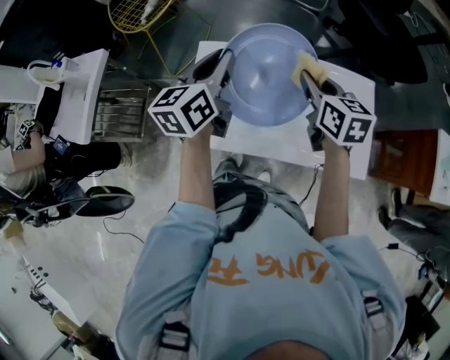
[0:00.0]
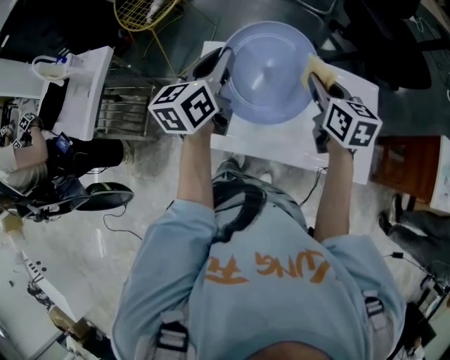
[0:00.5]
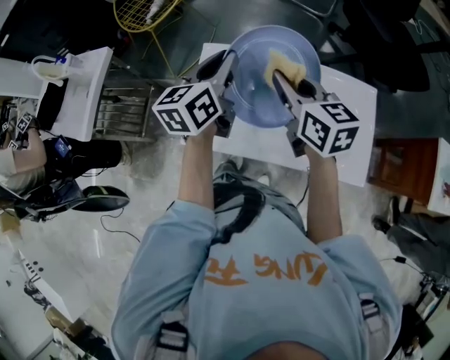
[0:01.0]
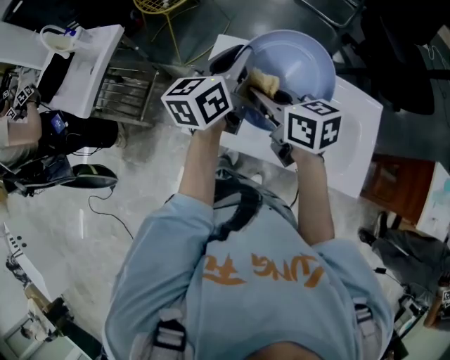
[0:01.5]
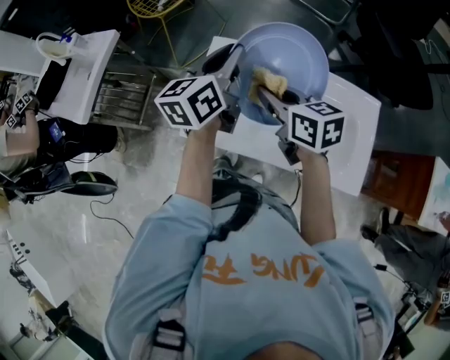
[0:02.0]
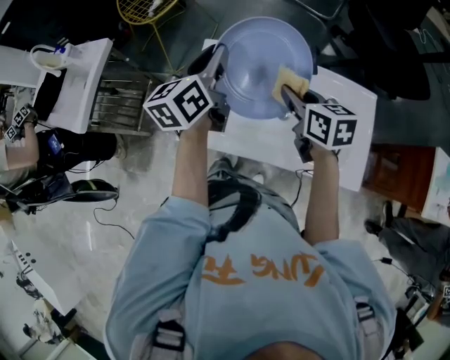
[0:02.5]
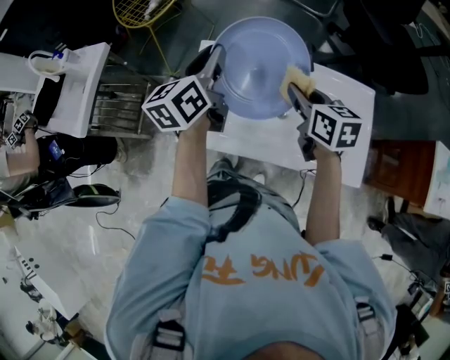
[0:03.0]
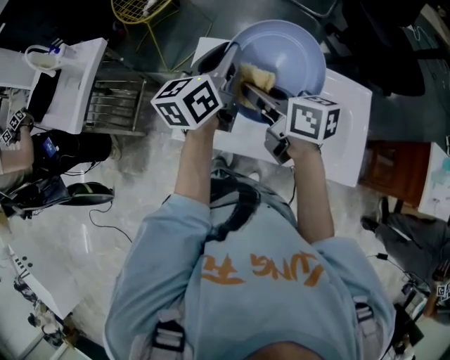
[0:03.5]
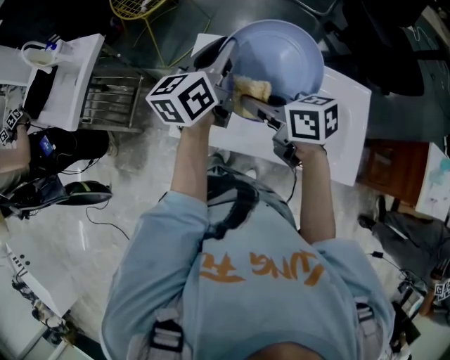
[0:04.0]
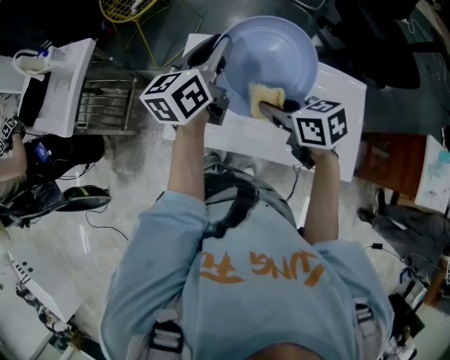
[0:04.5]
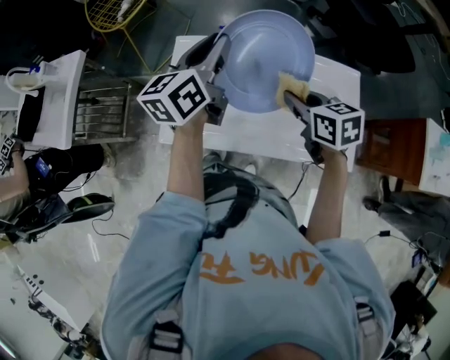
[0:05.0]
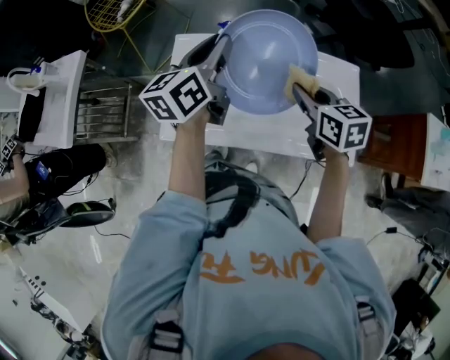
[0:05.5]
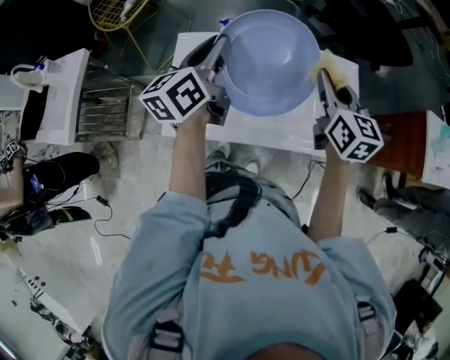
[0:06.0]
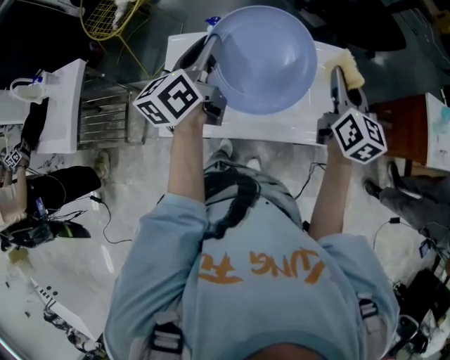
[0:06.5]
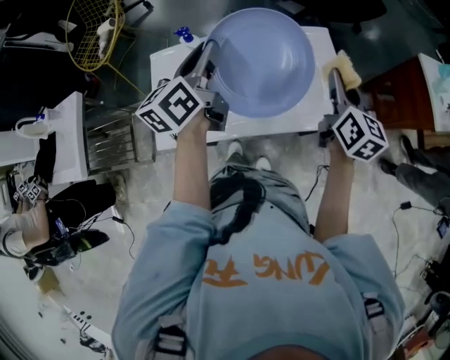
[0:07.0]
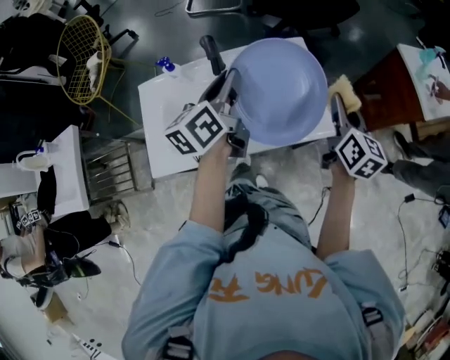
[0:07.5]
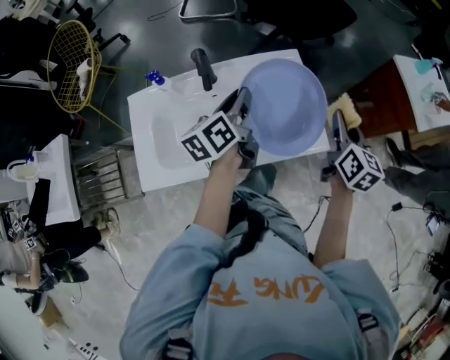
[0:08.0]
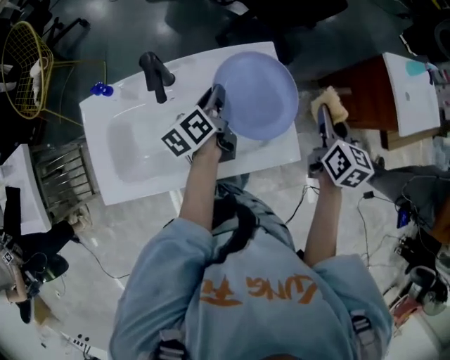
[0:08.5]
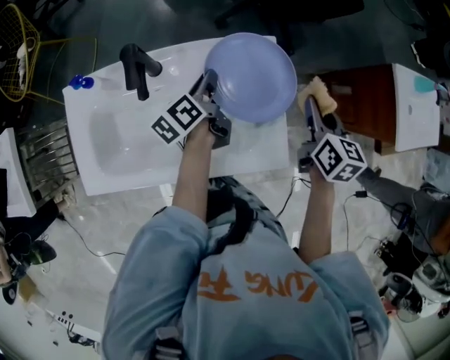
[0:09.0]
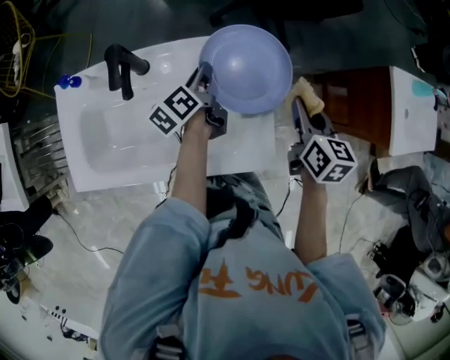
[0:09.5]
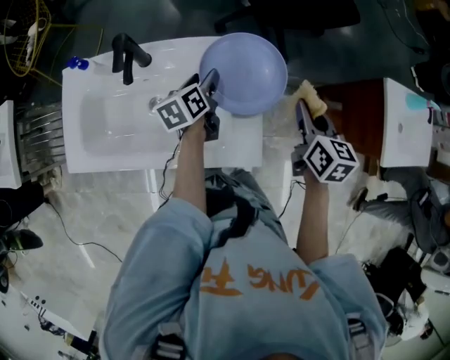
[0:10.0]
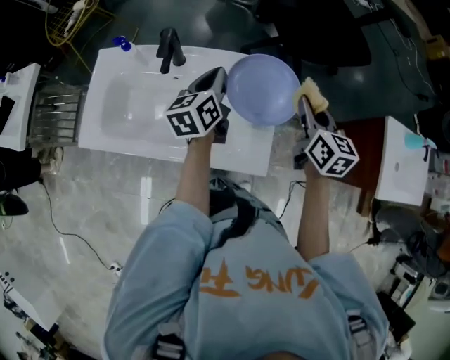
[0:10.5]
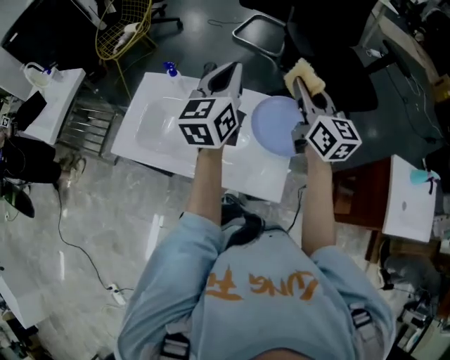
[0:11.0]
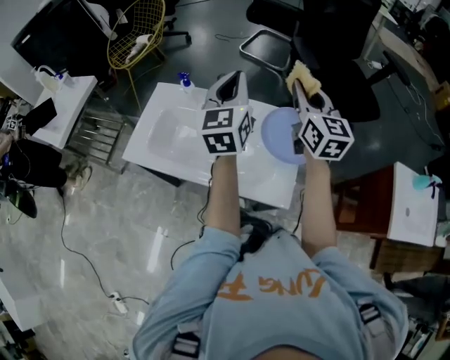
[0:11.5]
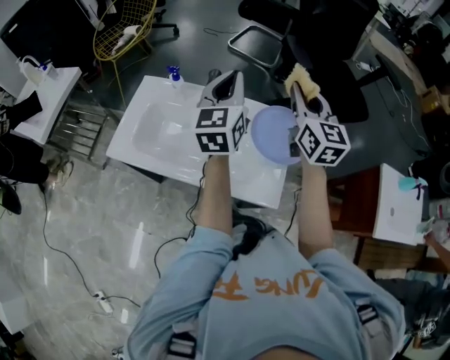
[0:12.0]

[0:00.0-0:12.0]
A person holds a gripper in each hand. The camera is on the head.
0:00.0 to 0:02.0: The right gripper moves to the left, approximately 15 cm, and swivels approximately 30 degrees.
0:02.0 to 0:04.0: The right gripper travels to the right and back again, some 10 cm each way.
0:04.0 to 0:06.0: The right gripper ends up roughly 25 cm from where it was, and turns by roughly 60 degrees, while the left gripper shifts by about 5 cm.
0:06.0 to 0:08.0: Both grippers move to the right, roughly 25 cm. The right gripper rotates roughly 30 degrees, while the left gripper rotates about 20 degrees.
0:08.0 to 0:10.0: The left gripper shifts approximately 25 cm downward and forward, swivels about 20 degrees, and opens its fingers. Meanwhile the right gripper moves forward and downward, approximately 20 cm, and turns by some 30 degrees.
0:10.0 to 0:12.0: The left gripper heads upward, covering about 30 cm, points its fingers roughly 30 degrees further upward, and closes; the right gripper moves upward and to the left, some 25 cm, and angles its fingers upward, by some 30 degrees.

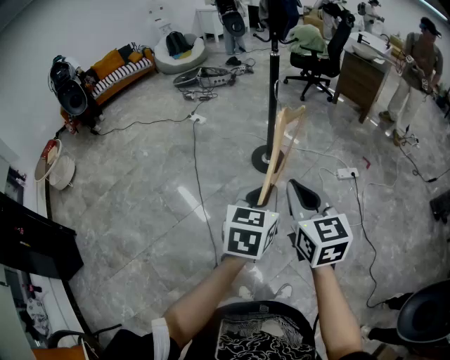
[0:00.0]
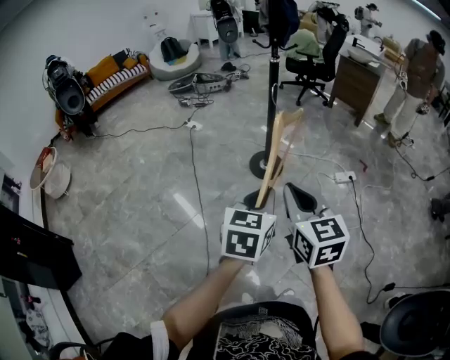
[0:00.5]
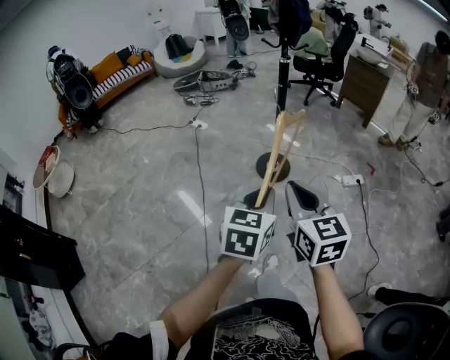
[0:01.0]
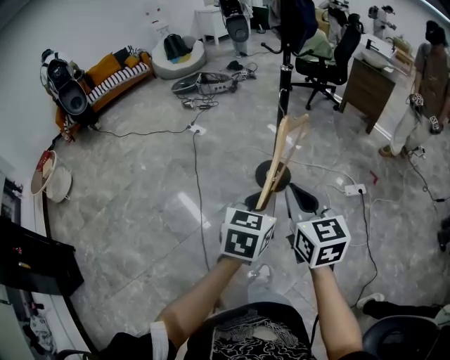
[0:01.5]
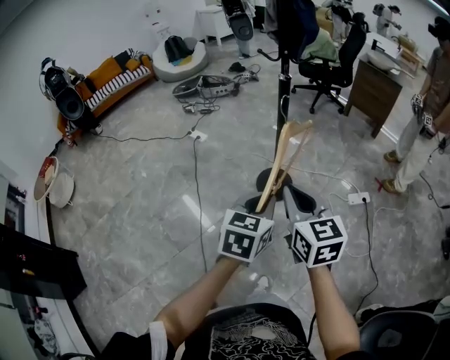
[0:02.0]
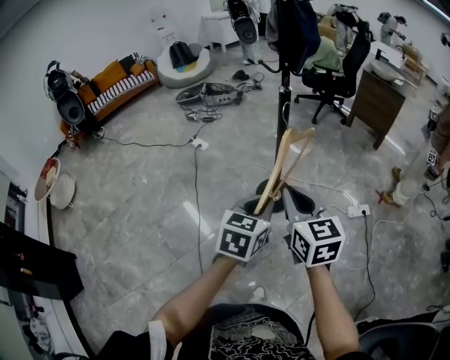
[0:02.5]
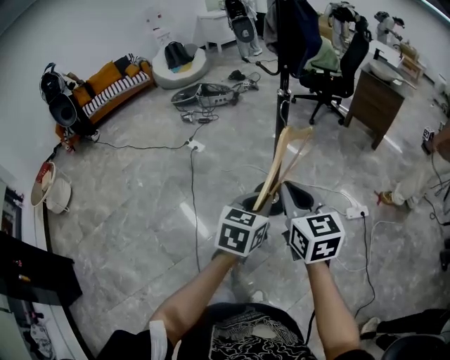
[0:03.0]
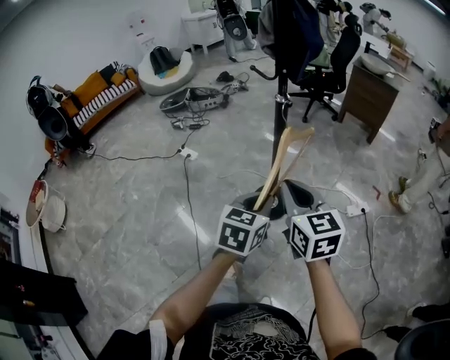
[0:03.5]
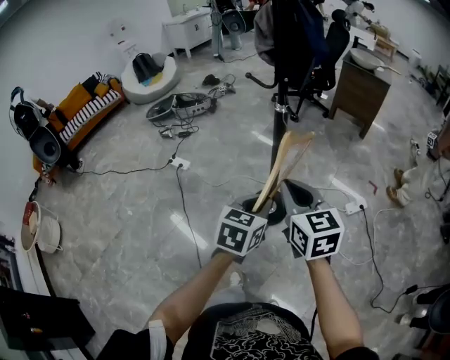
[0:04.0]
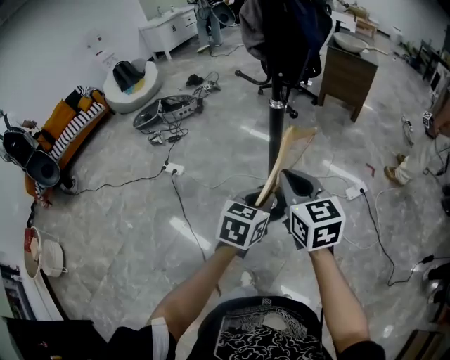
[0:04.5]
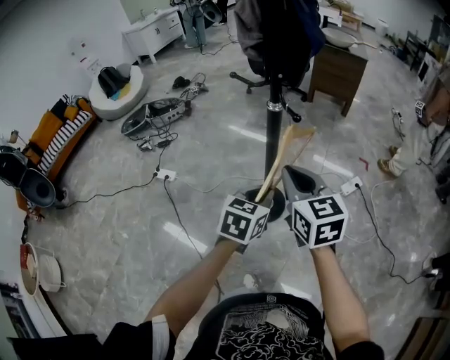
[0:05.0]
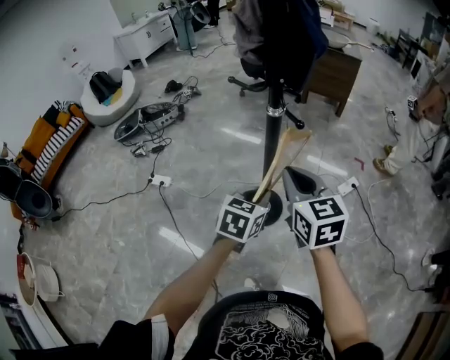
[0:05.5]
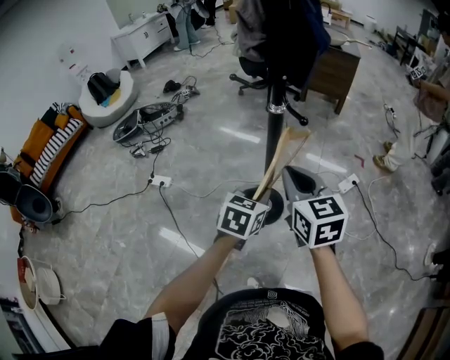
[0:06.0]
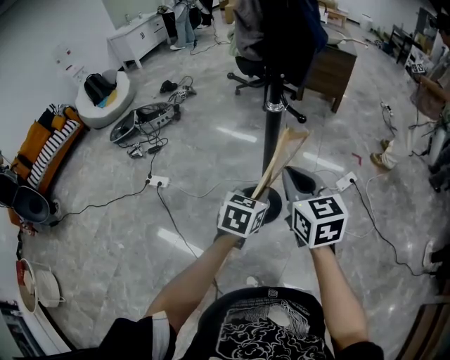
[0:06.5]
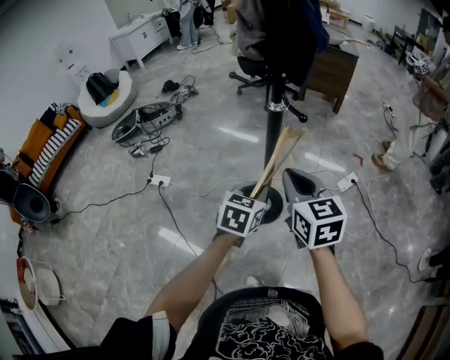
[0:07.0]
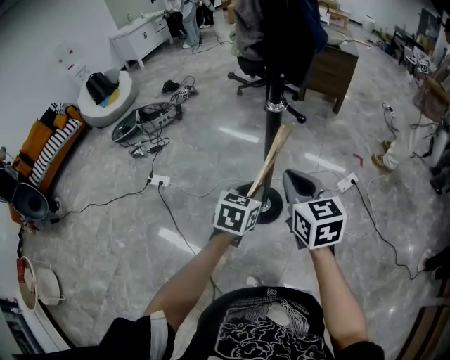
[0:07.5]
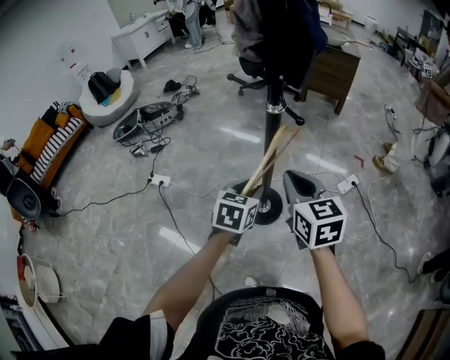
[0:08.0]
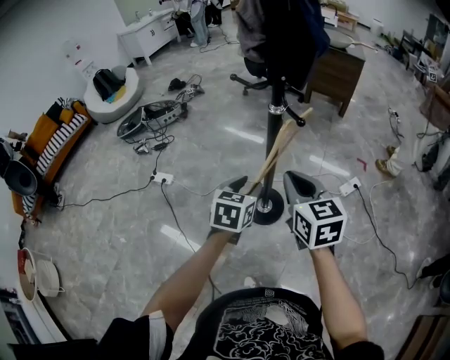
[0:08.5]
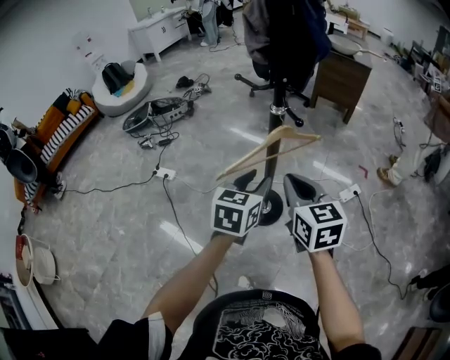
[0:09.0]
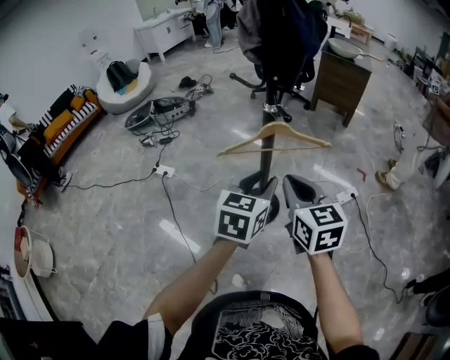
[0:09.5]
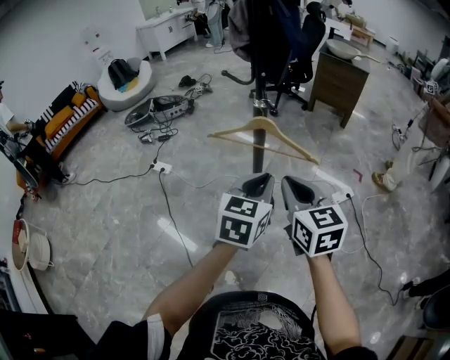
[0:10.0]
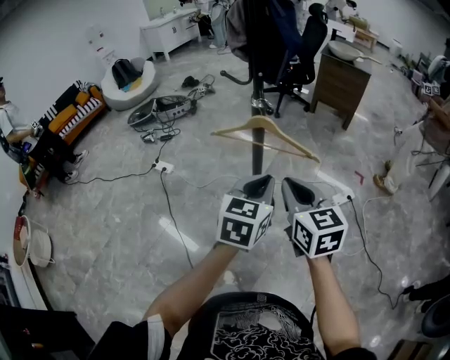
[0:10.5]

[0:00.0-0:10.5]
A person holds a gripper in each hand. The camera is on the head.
0:00.0 to 0:02.0: Both grippers travel together forward, roughly 25 cm.
0:02.0 to 0:04.0: The grippers both shift forward by some 20 cm.
0:04.0 to 0:06.5: The right gripper heads forward and to the left, covering about 10 cm, while the left gripper heads forward, to the left and downward, covering approximately 15 cm.
0:06.5 to 0:08.5: The left gripper opens.
0:08.5 to 0:10.5: The right gripper moves to the right and backward, some 10 cm. Meanwhile the left gripper is displaced to the right, upward and backward by approximately 20 cm, and closes its fingers.

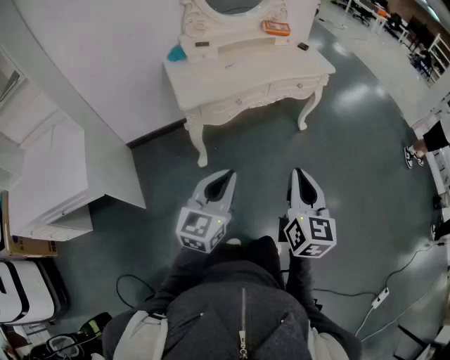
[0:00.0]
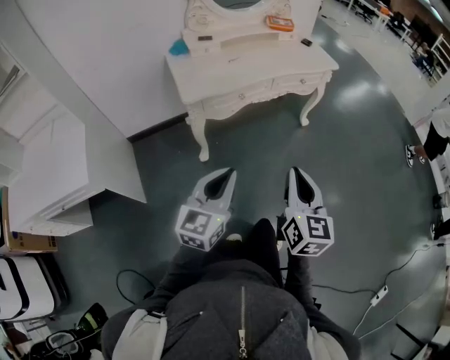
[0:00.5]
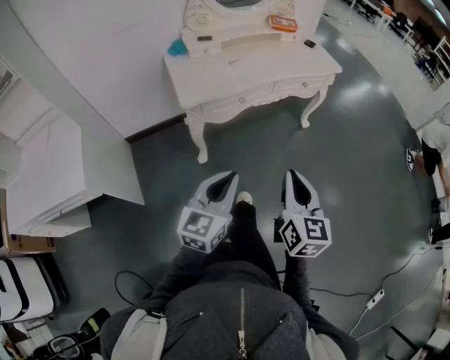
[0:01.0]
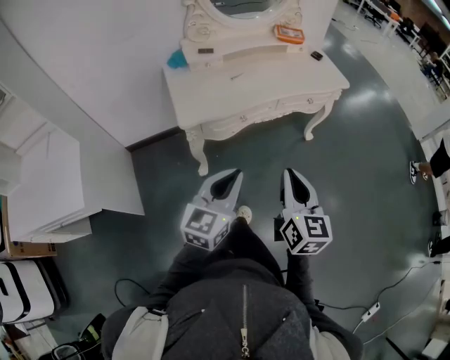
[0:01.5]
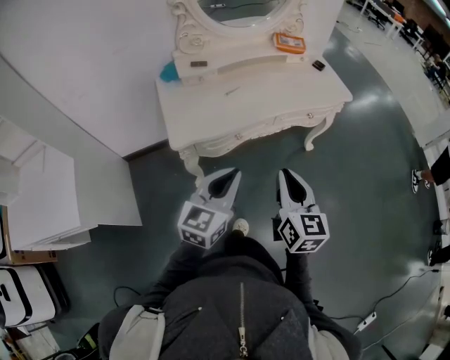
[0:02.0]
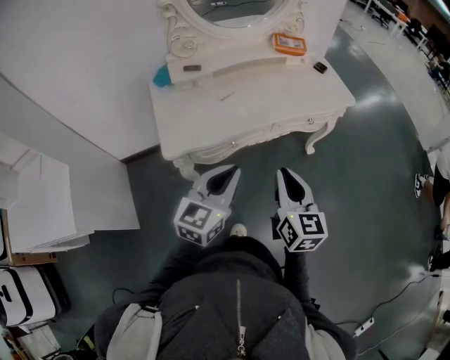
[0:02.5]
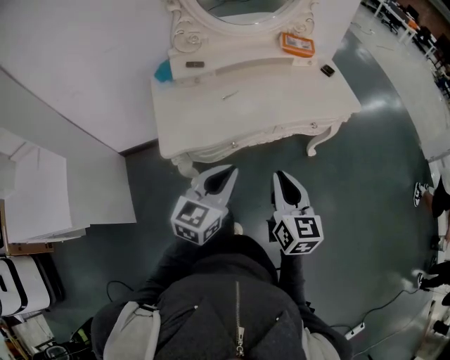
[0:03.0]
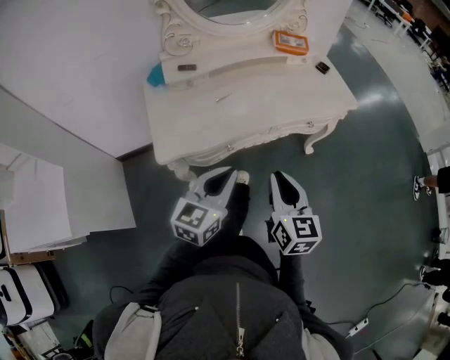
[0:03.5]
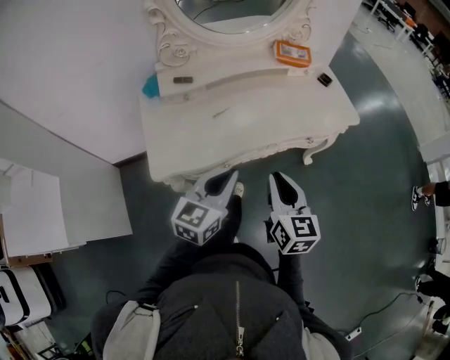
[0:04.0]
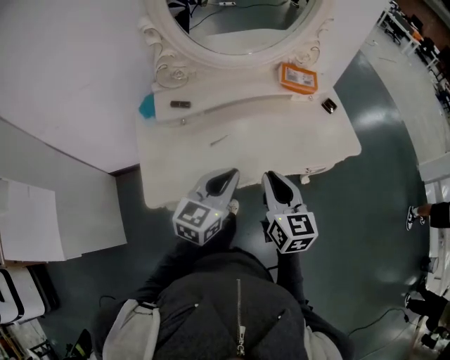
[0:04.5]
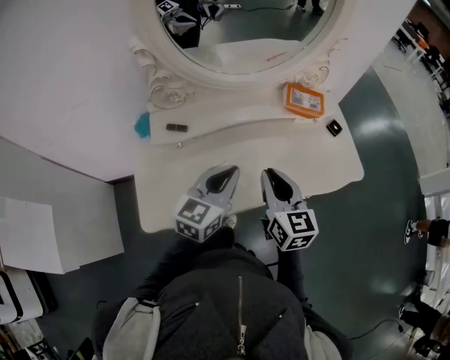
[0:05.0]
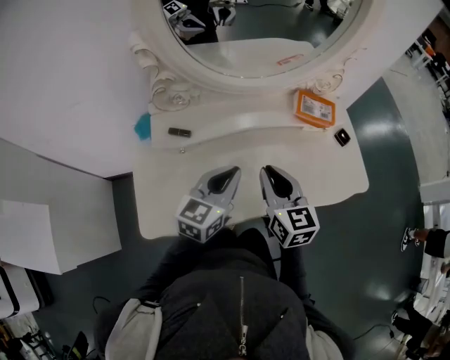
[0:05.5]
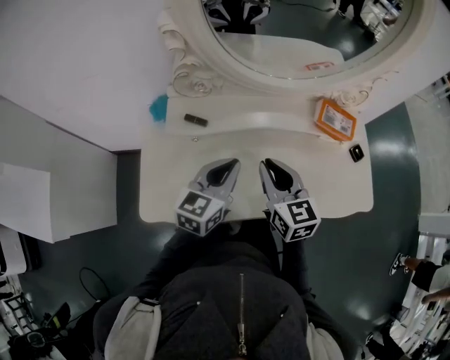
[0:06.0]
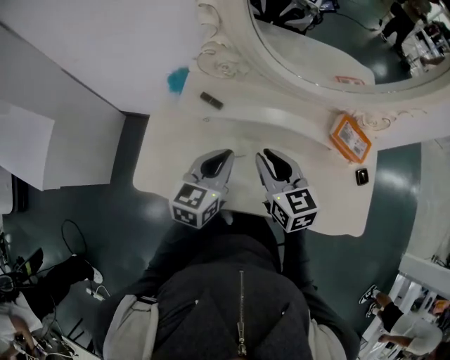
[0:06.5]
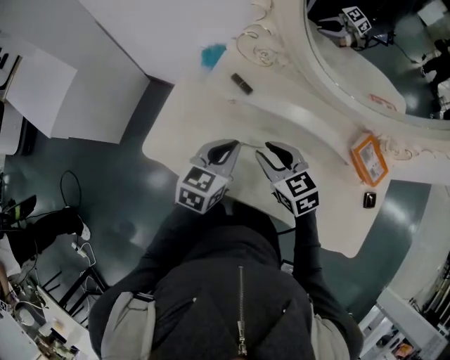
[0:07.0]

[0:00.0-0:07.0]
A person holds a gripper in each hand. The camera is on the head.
0:00.0 to 0:02.0: The grippers both shift forward by about 25 cm.
0:02.0 to 0:03.5: Both grippers move forward, some 10 cm.
0:03.5 to 0:05.0: The grippers both shift forward by approximately 30 cm.
0:05.0 to 0:07.0: The right gripper shifts by approximately 15 cm, and turns by about 70 degrees; the left gripper changes place by some 15 cm, and rotates some 40 degrees.
